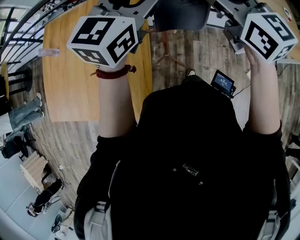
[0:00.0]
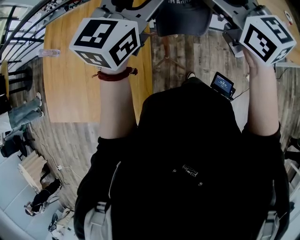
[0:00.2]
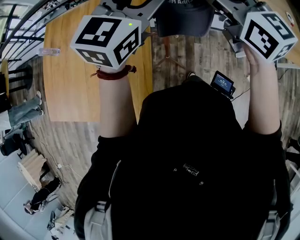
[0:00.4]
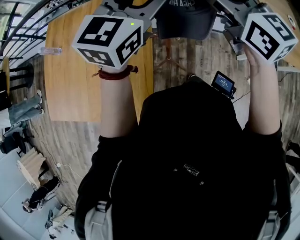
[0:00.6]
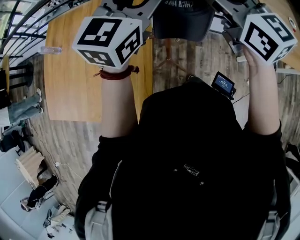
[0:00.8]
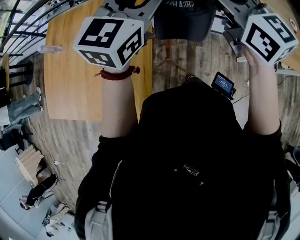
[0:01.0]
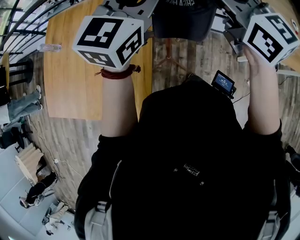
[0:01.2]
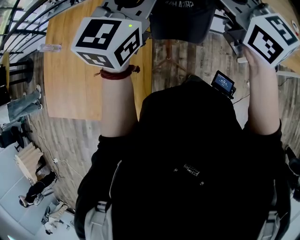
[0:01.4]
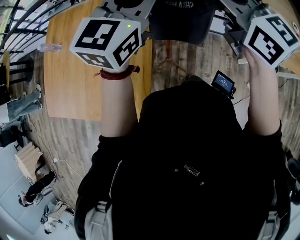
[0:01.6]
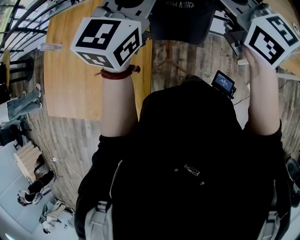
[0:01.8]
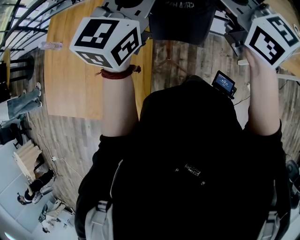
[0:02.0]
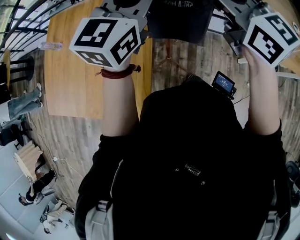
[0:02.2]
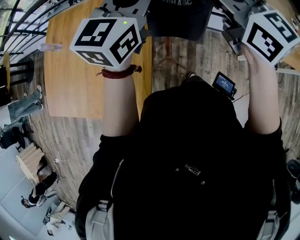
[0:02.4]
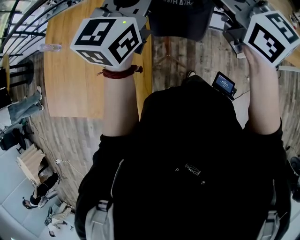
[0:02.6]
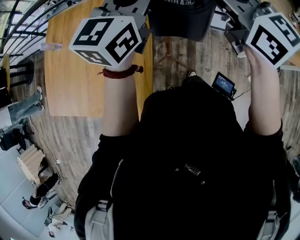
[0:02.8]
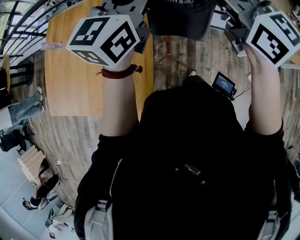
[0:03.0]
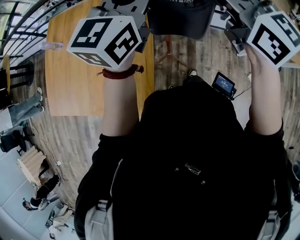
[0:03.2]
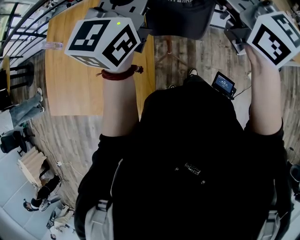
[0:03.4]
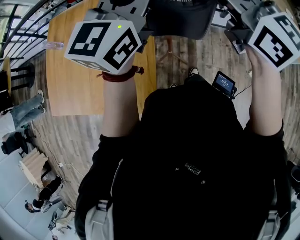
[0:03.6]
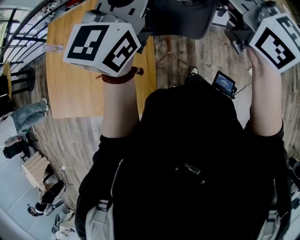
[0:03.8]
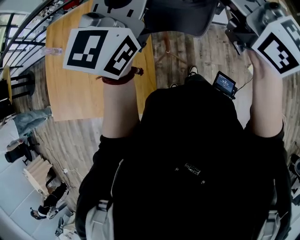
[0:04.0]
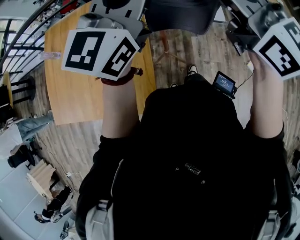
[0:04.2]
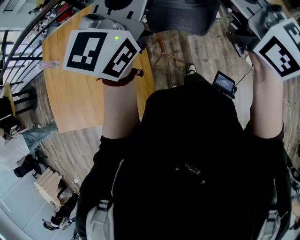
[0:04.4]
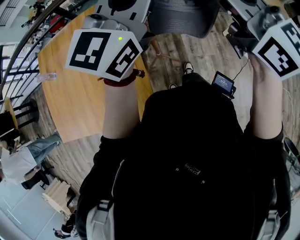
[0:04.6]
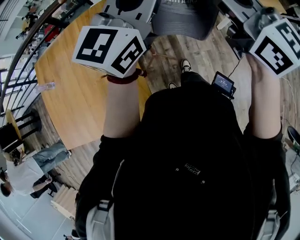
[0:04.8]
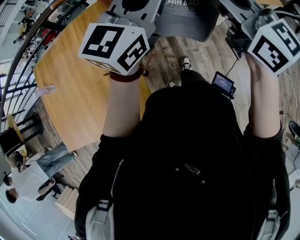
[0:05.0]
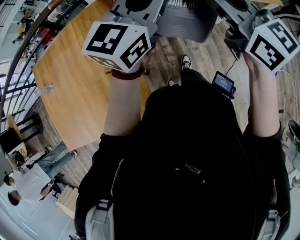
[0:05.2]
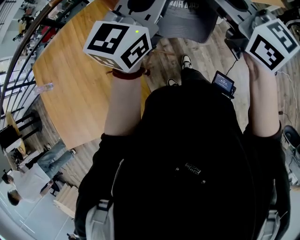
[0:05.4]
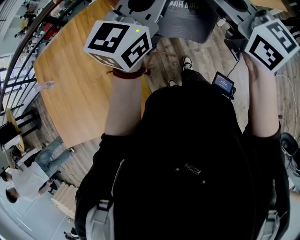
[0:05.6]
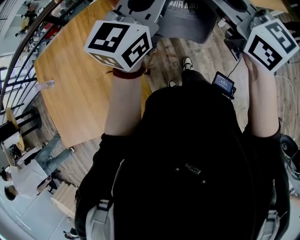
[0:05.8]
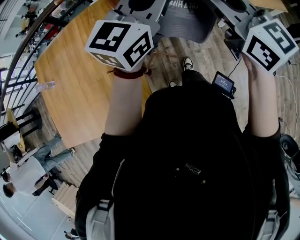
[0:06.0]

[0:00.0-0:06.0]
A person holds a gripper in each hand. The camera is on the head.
0:00.0 to 0:01.6: The left gripper closes; the right gripper closes.
0:01.6 to 0:03.0: The grippers move only a little.
0:03.0 to 0:04.4: The two grippers go some 10 cm upward.
0:04.4 to 0:06.0: The right gripper heads downward, forward and to the right, covering about 10 cm; the left gripper travels forward, downward and to the right by some 15 cm.

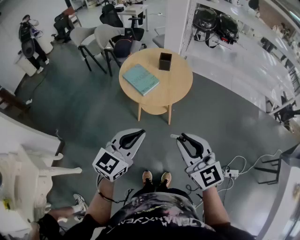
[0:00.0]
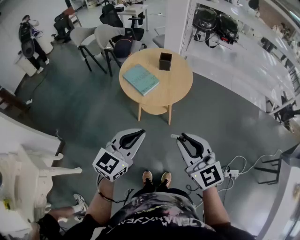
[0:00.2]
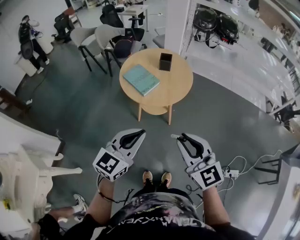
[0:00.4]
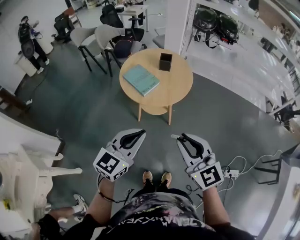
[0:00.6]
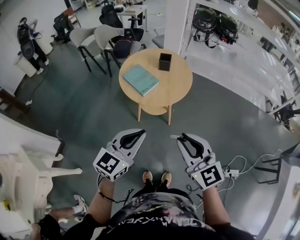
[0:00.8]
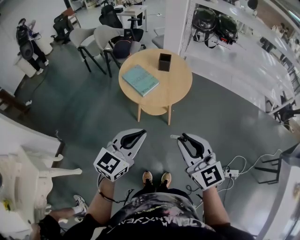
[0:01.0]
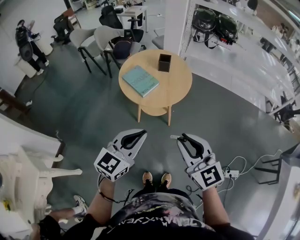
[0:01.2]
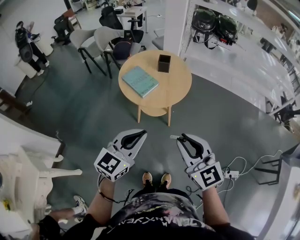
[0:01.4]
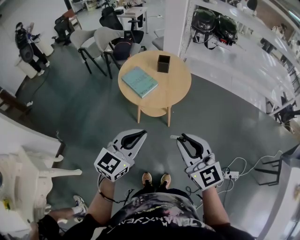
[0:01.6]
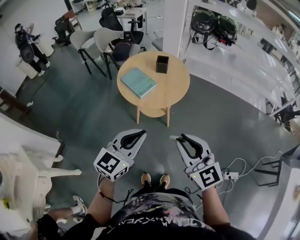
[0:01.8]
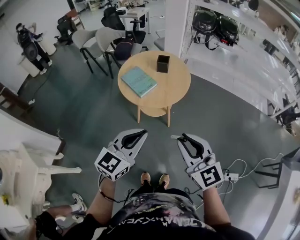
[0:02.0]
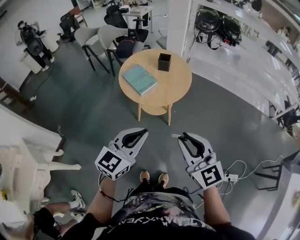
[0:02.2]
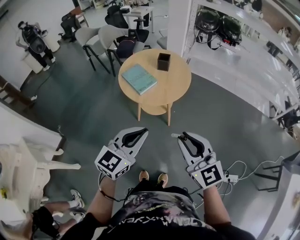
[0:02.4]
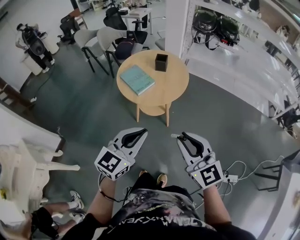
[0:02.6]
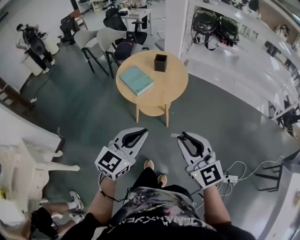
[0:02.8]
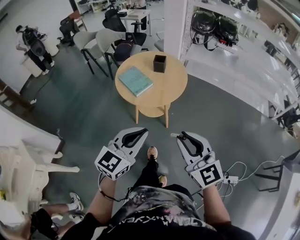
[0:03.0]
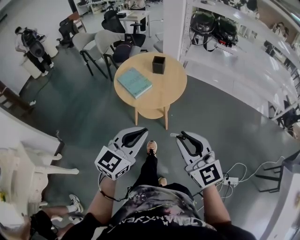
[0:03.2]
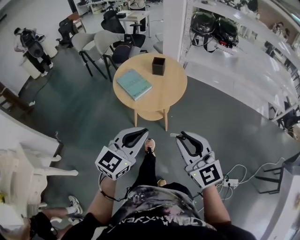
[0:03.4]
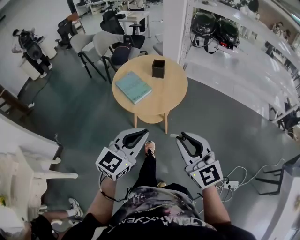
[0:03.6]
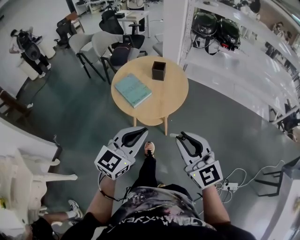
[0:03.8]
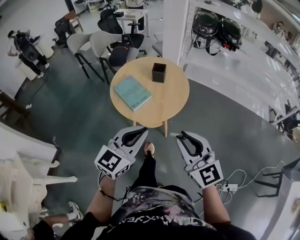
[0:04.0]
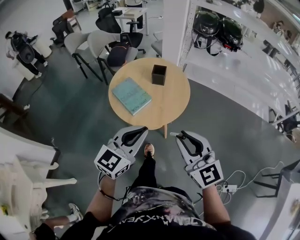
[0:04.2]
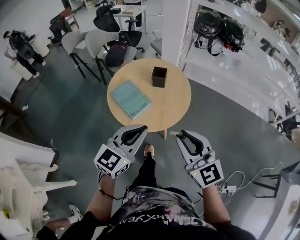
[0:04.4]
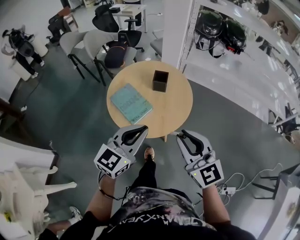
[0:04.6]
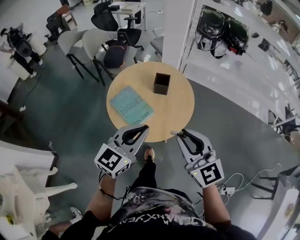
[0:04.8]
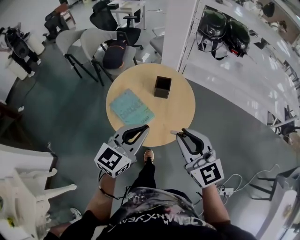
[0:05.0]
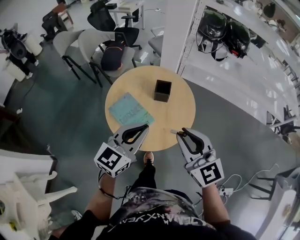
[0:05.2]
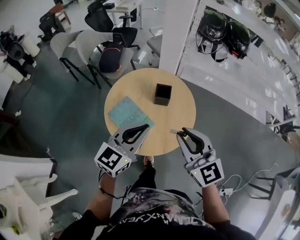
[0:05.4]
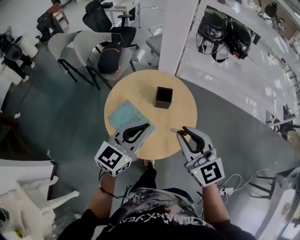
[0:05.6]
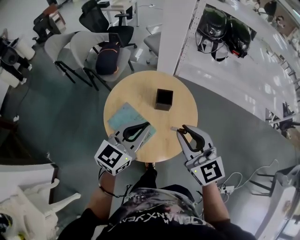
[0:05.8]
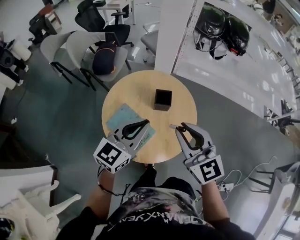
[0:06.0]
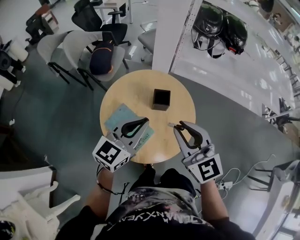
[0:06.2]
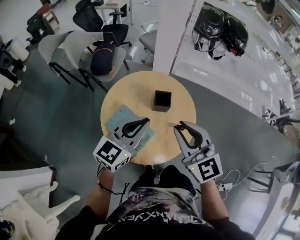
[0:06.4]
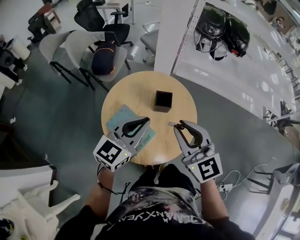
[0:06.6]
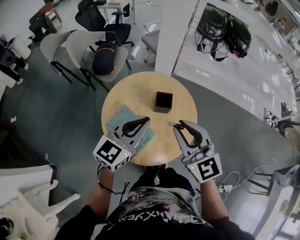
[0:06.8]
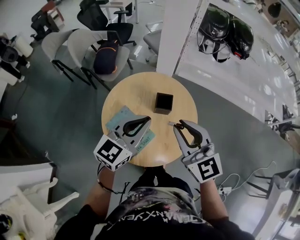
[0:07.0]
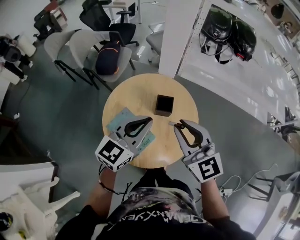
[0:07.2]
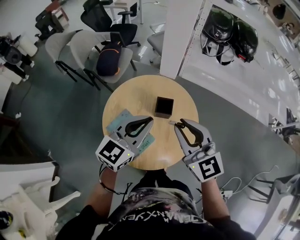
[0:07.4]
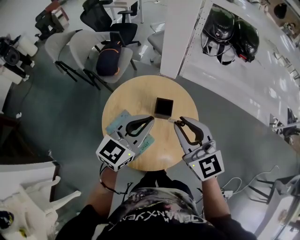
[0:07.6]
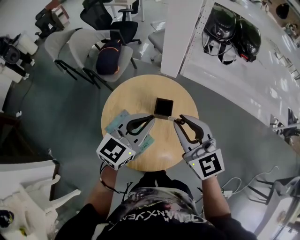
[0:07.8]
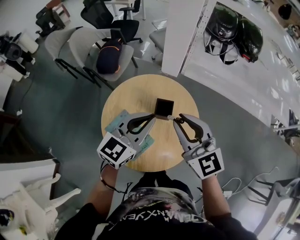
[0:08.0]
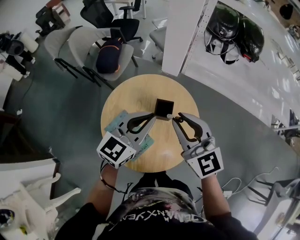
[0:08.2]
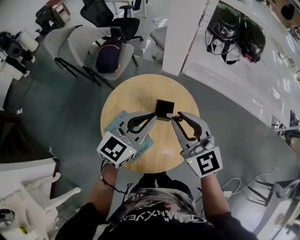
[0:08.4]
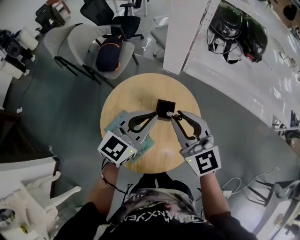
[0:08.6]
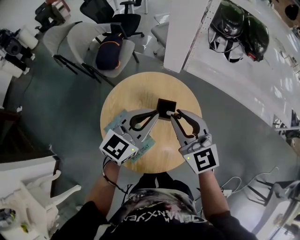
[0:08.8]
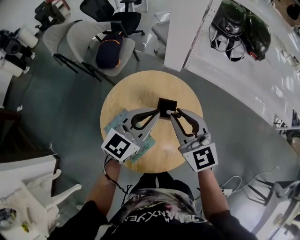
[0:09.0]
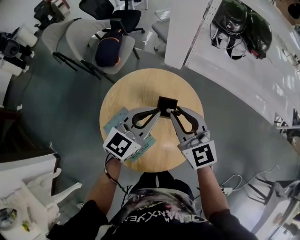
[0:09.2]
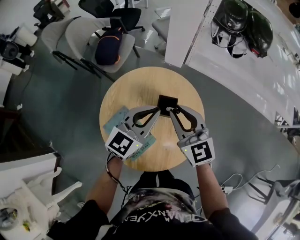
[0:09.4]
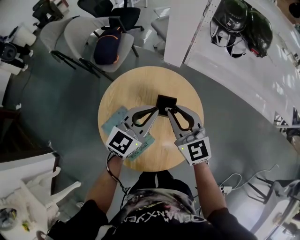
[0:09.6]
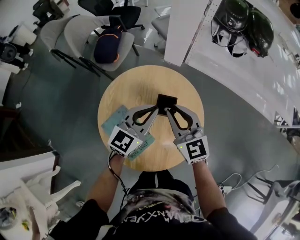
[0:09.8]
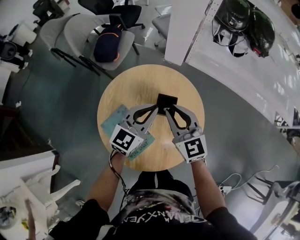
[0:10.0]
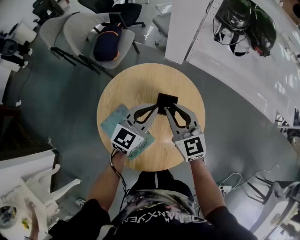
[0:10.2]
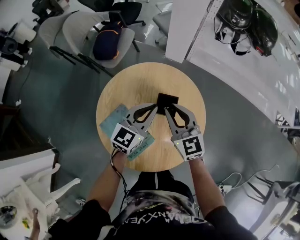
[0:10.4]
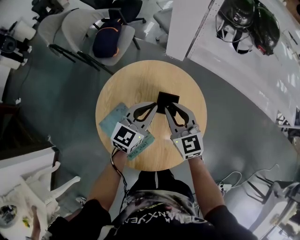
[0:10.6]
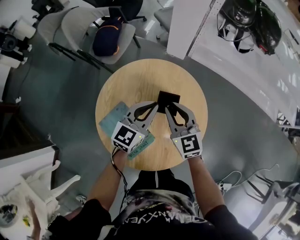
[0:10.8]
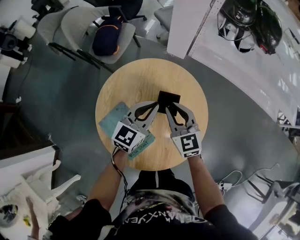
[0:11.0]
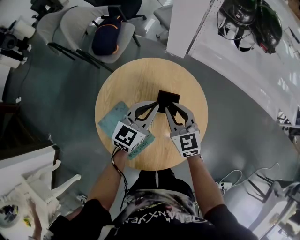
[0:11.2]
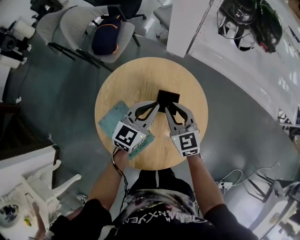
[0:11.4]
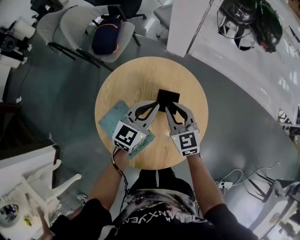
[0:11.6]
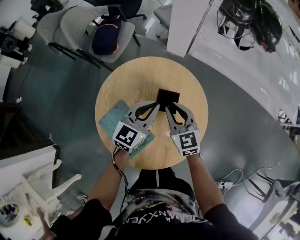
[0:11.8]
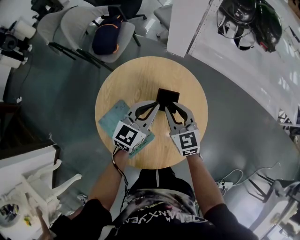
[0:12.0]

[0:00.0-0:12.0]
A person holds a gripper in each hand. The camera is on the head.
0:00.0 to 0:01.6: The grippers stay close to where they were, moving slightly.
0:01.6 to 0:03.0: Both grippers travel together to the right, about 5 cm.
0:03.0 to 0:04.4: Both grippers travel together forward, roughly 20 cm.
0:04.4 to 0:06.0: The two grippers go about 25 cm forward.
0:06.0 to 0:07.6: The grippers both shift forward by roughly 10 cm.
0:07.6 to 0:09.0: The left gripper travels forward by about 5 cm. The right gripper heads forward and downward, covering about 10 cm.
0:09.0 to 0:10.4: Both grippers travel together downward, about 10 cm.
0:10.4 to 0:12.0: The right gripper is displaced downward by roughly 5 cm.

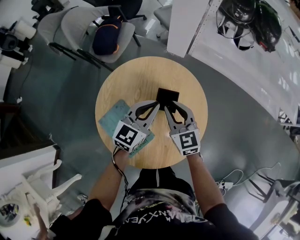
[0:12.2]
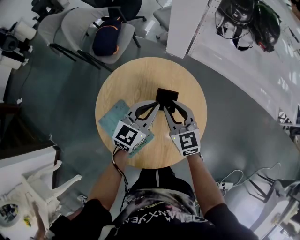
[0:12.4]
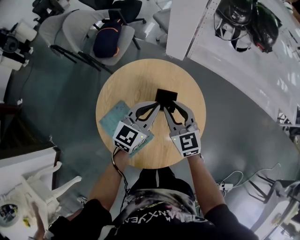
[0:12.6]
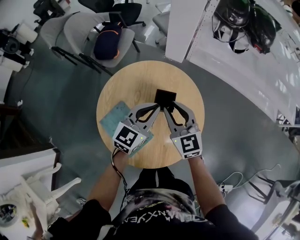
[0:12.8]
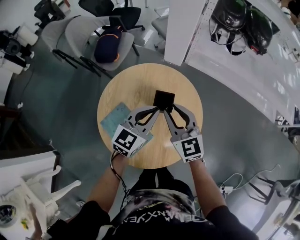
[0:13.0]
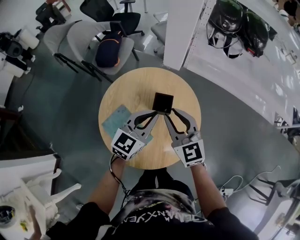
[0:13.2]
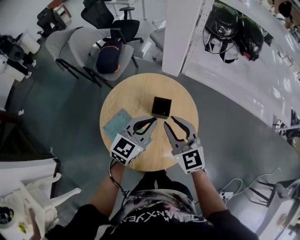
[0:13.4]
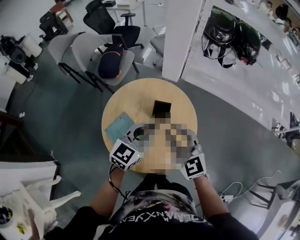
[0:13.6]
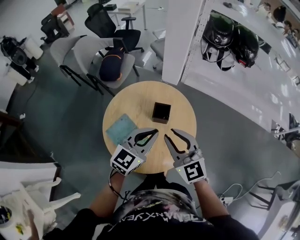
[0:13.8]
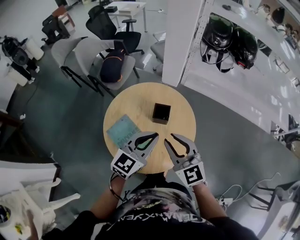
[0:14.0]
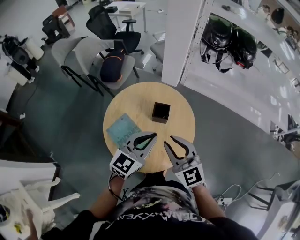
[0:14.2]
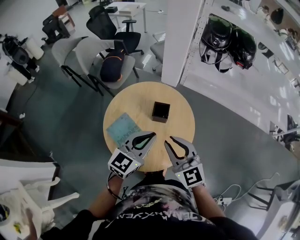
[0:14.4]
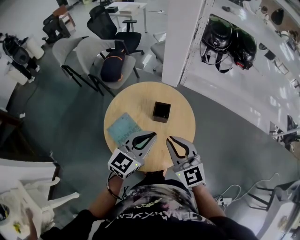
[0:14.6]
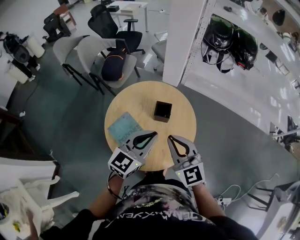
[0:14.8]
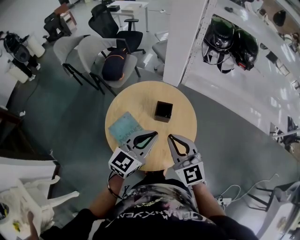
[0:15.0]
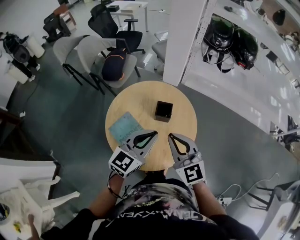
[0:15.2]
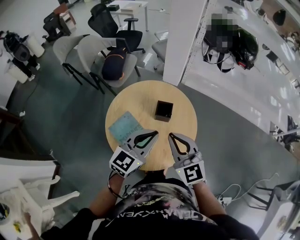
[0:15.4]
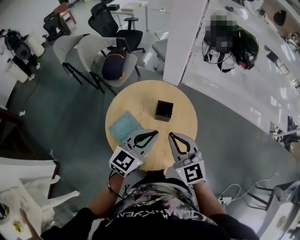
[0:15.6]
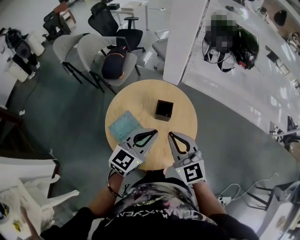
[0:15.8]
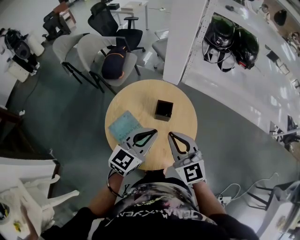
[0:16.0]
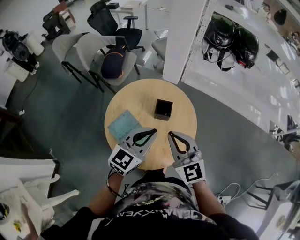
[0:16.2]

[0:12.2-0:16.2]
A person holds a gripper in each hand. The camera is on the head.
0:12.2 to 0:13.6: The two grippers go some 15 cm upward and backward.
0:13.6 to 0:14.8: The two grippers go about 5 cm backward. The right gripper closes its fingers.
0:14.8 to 0:16.2: Neither gripper changes place.

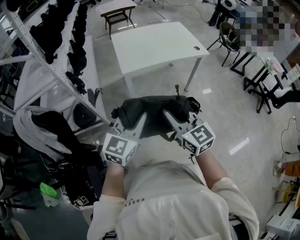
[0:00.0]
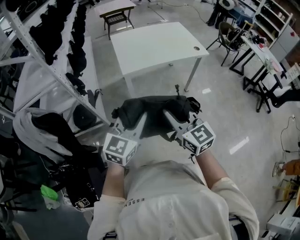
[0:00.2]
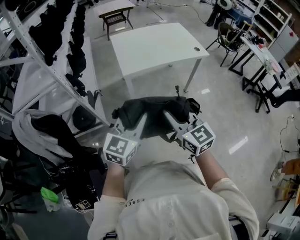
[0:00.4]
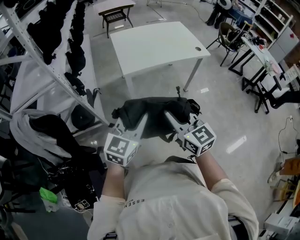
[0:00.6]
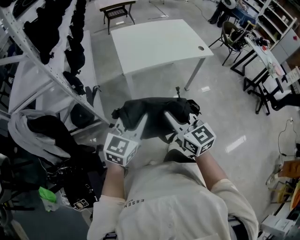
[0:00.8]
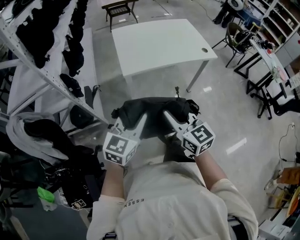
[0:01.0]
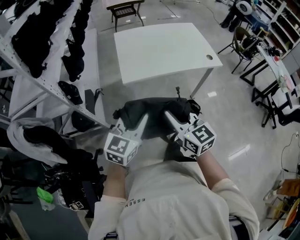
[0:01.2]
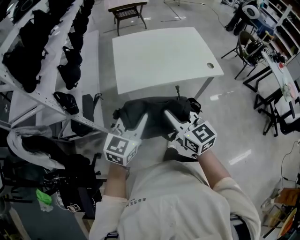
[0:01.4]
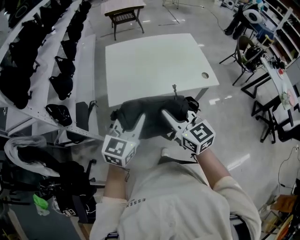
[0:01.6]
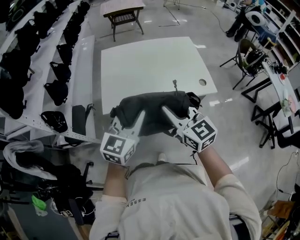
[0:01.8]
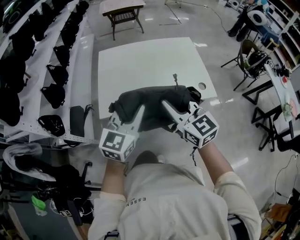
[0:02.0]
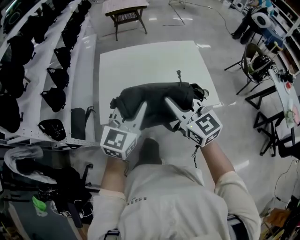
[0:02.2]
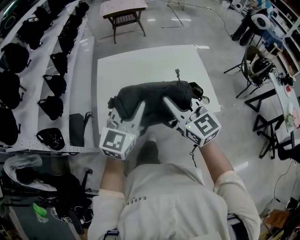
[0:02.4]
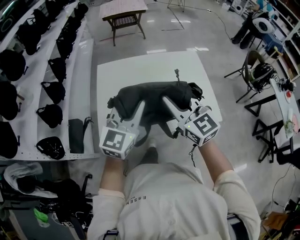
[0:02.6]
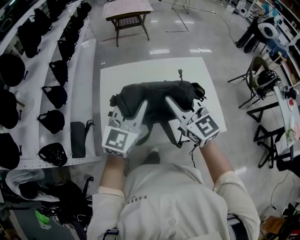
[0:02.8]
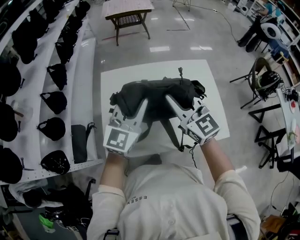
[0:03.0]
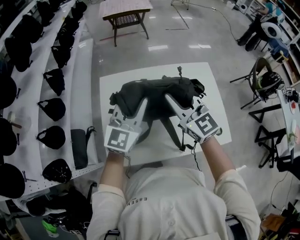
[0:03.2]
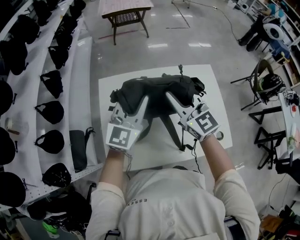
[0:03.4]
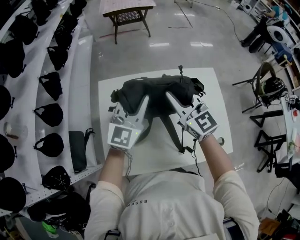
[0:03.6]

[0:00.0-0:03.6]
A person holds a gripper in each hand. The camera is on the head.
0:00.0 to 0:01.8: Both grippers travel together forward and to the right, some 40 cm.
0:01.8 to 0:03.6: Both grippers are carried forward, about 50 cm.
